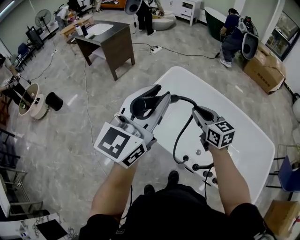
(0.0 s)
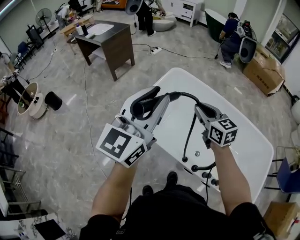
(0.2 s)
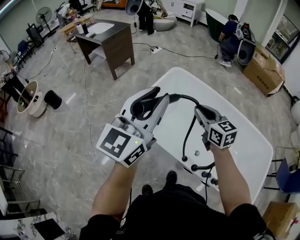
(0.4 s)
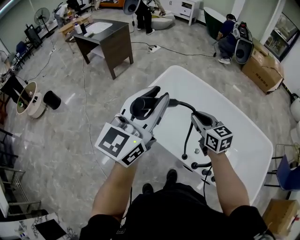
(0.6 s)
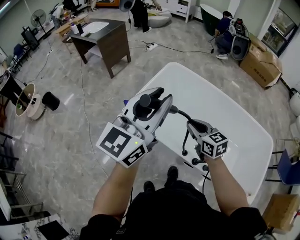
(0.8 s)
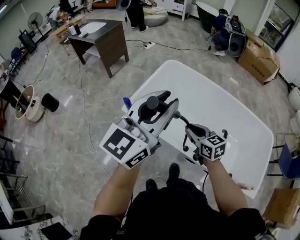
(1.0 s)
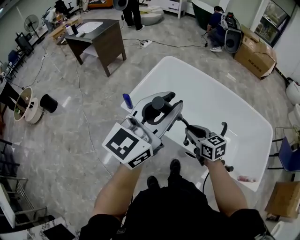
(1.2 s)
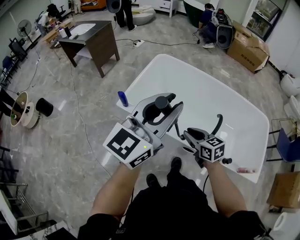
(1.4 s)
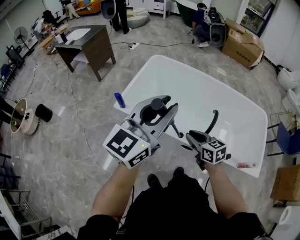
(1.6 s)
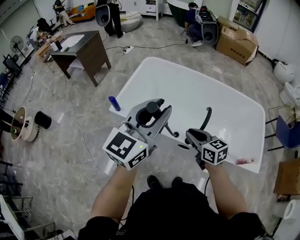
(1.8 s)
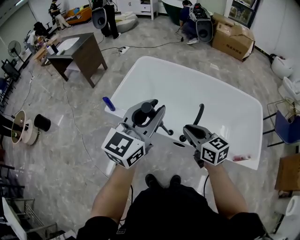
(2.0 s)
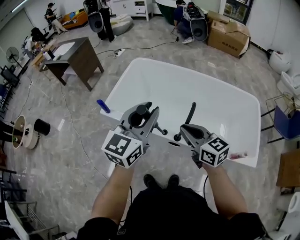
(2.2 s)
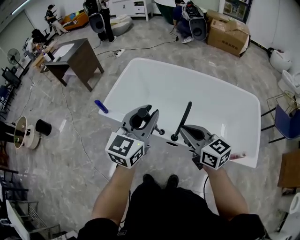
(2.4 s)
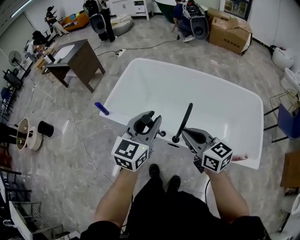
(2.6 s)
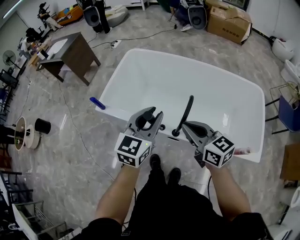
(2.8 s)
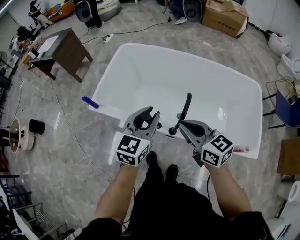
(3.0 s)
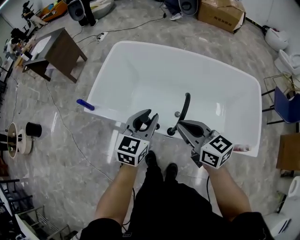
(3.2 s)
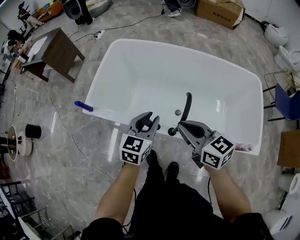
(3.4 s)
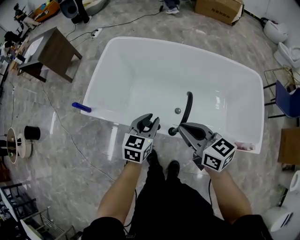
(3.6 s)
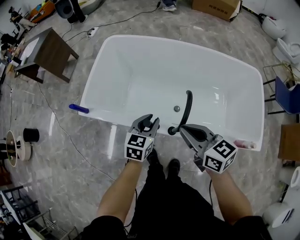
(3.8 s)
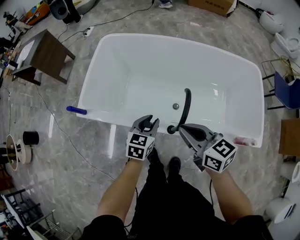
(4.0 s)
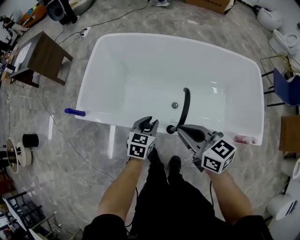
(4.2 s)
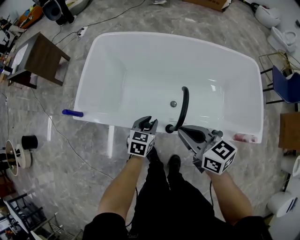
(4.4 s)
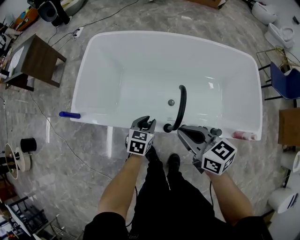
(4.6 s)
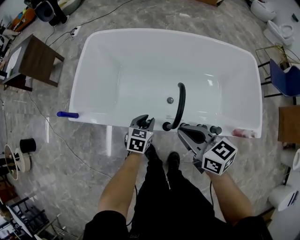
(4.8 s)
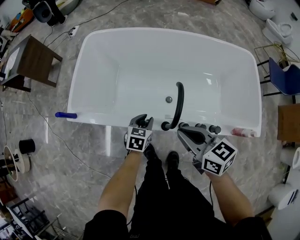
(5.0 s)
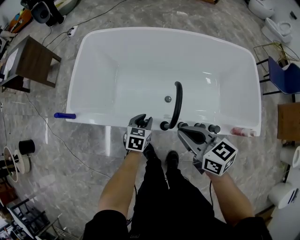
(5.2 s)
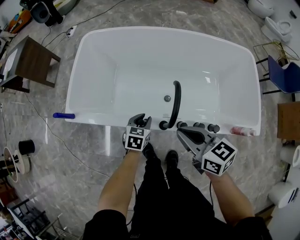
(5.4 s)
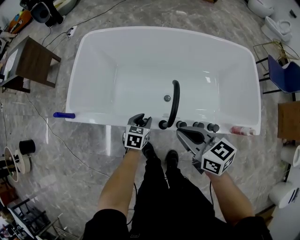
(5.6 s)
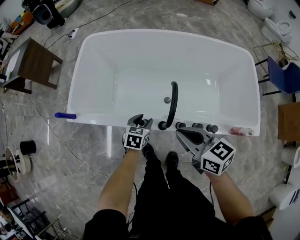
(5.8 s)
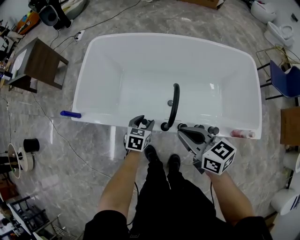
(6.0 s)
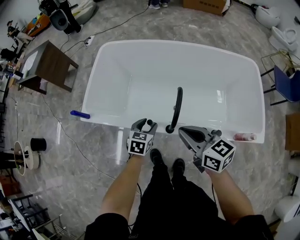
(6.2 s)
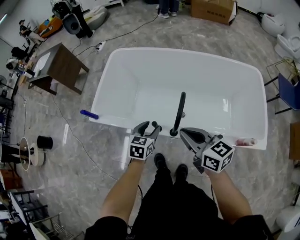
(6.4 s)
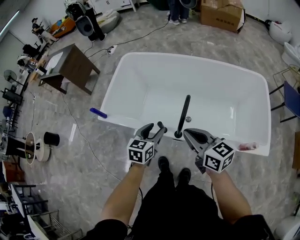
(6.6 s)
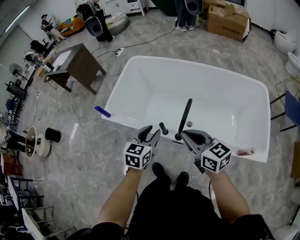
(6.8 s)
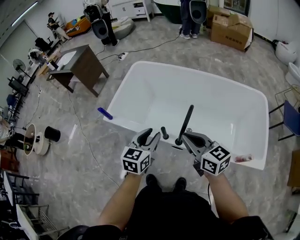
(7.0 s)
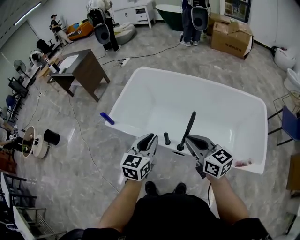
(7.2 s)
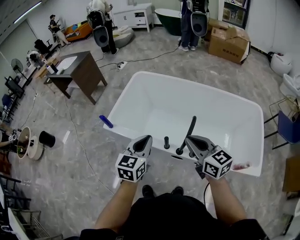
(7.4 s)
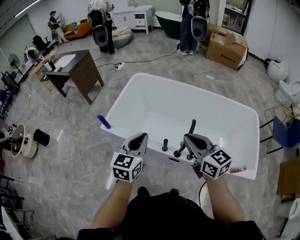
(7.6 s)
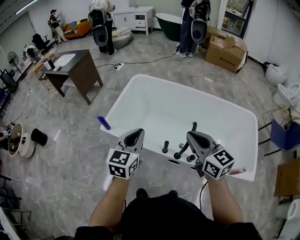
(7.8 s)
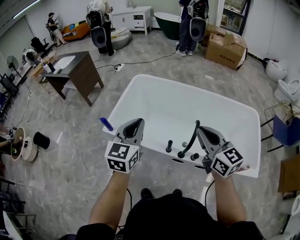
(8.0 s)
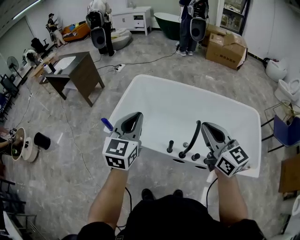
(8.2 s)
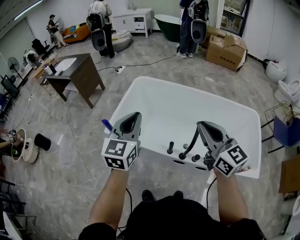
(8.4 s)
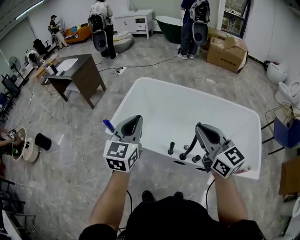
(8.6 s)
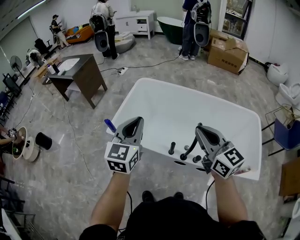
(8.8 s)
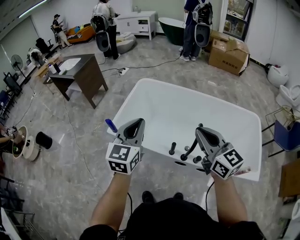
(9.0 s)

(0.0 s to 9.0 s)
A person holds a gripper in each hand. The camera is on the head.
0.0 s - 1.6 s: The left gripper goes about 15 cm backward and to the right; the right gripper travels backward and downward by roughly 25 cm.
1.6 s - 3.0 s: The left gripper goes roughly 25 cm downward and to the right, and rotates roughly 20 degrees. The right gripper goes some 10 cm to the right and upward.
3.0 s - 4.4 s: The right gripper heads downward, covering approximately 5 cm, while the left gripper goes approximately 25 cm downward, and swivels some 30 degrees.
4.4 s - 6.0 s: The left gripper opens up.
6.0 s - 7.6 s: The right gripper is displaced upward by approximately 15 cm, and changes its angle by about 20 degrees. The left gripper heads upward, covering roughly 30 cm, angles its fingers upward, by roughly 30 degrees, and closes up.
7.6 s - 9.0 s: The right gripper heads upward, covering roughly 5 cm, while the left gripper is displaced upward and to the left by approximately 10 cm.

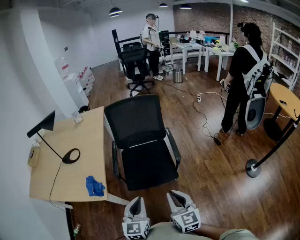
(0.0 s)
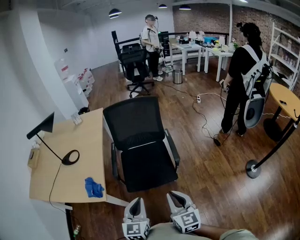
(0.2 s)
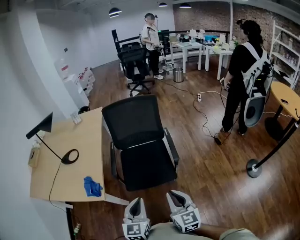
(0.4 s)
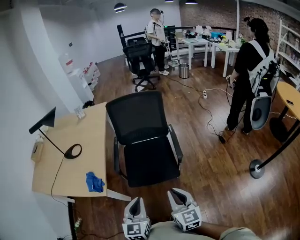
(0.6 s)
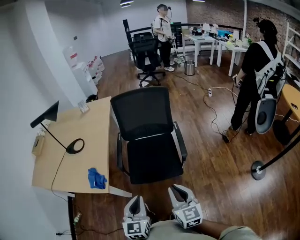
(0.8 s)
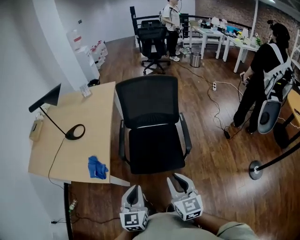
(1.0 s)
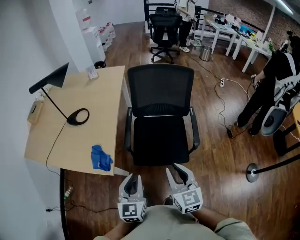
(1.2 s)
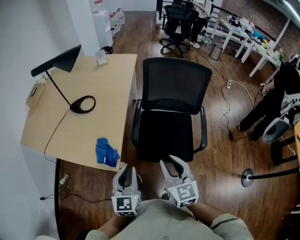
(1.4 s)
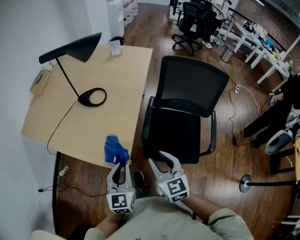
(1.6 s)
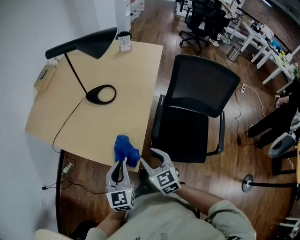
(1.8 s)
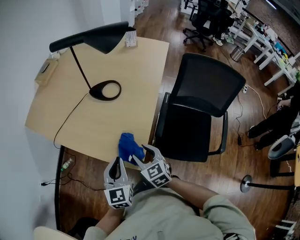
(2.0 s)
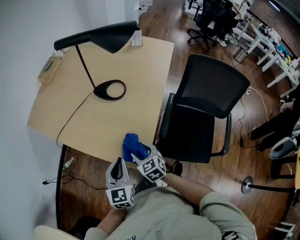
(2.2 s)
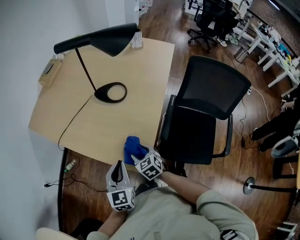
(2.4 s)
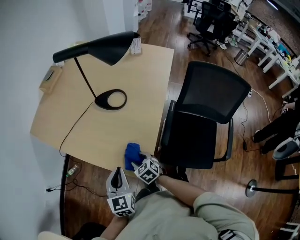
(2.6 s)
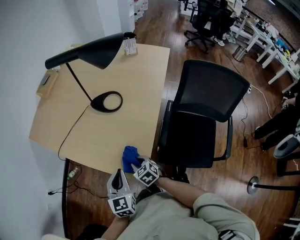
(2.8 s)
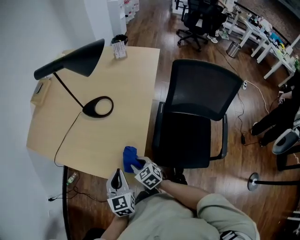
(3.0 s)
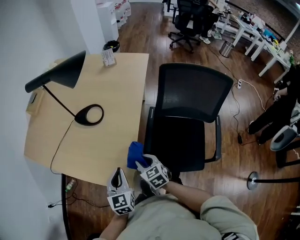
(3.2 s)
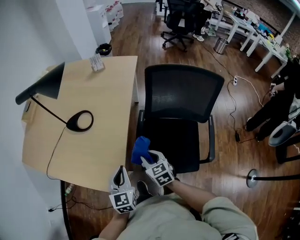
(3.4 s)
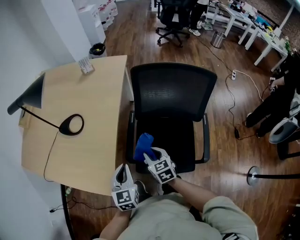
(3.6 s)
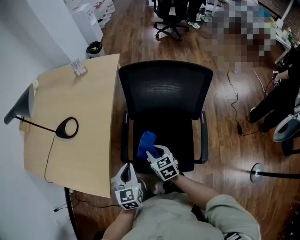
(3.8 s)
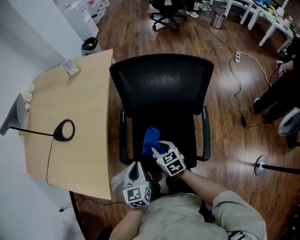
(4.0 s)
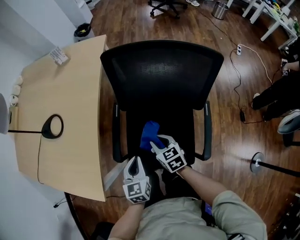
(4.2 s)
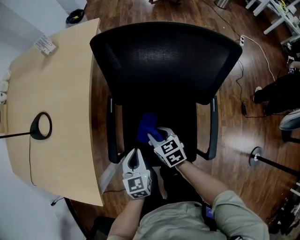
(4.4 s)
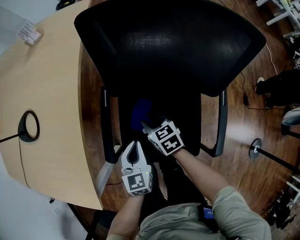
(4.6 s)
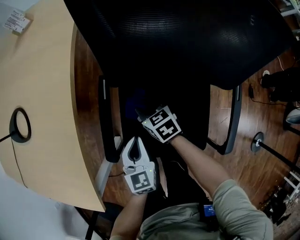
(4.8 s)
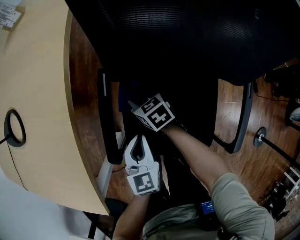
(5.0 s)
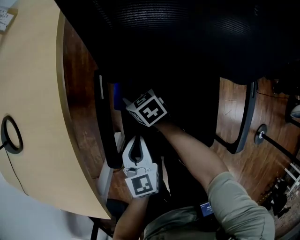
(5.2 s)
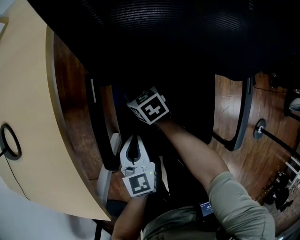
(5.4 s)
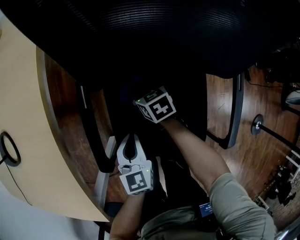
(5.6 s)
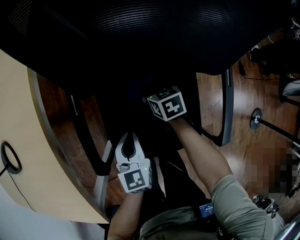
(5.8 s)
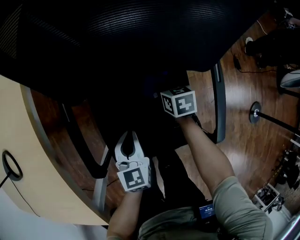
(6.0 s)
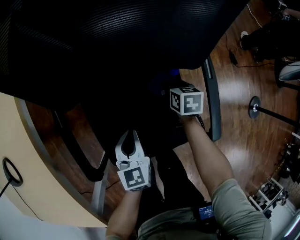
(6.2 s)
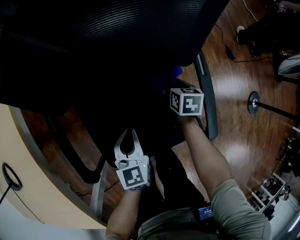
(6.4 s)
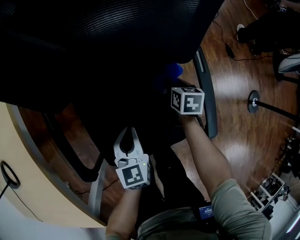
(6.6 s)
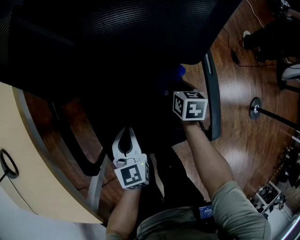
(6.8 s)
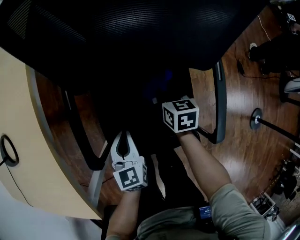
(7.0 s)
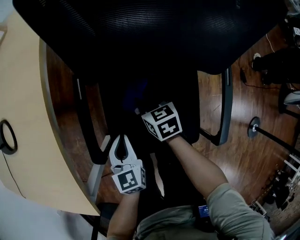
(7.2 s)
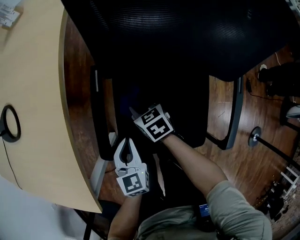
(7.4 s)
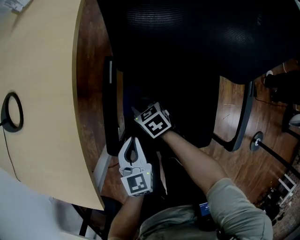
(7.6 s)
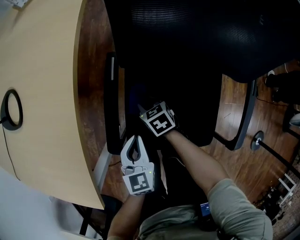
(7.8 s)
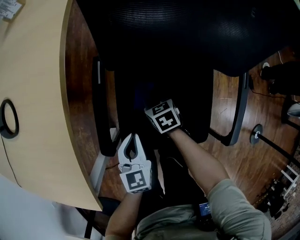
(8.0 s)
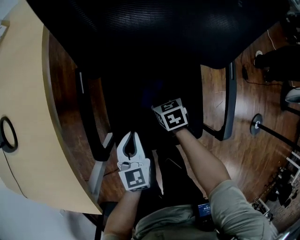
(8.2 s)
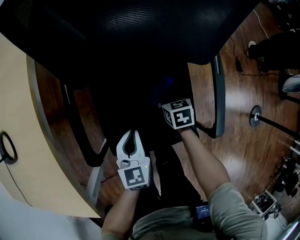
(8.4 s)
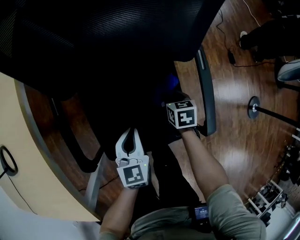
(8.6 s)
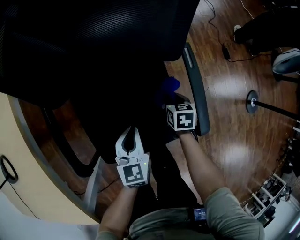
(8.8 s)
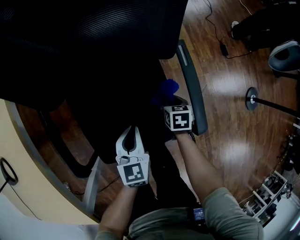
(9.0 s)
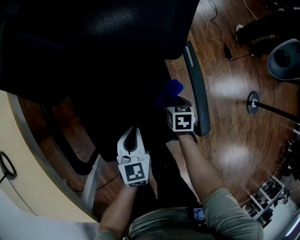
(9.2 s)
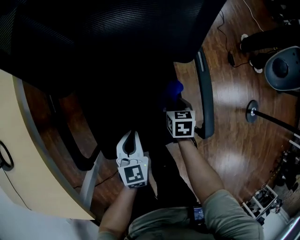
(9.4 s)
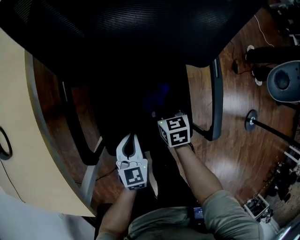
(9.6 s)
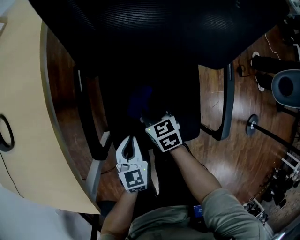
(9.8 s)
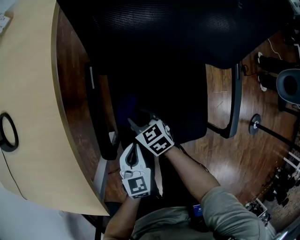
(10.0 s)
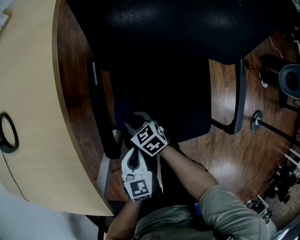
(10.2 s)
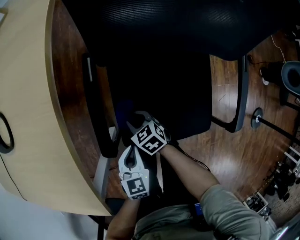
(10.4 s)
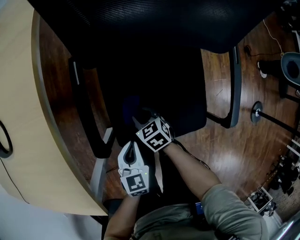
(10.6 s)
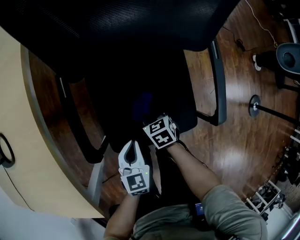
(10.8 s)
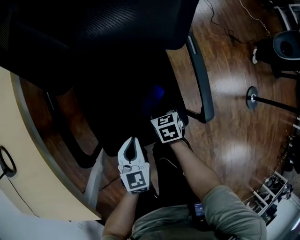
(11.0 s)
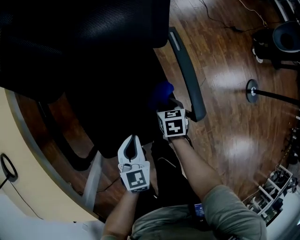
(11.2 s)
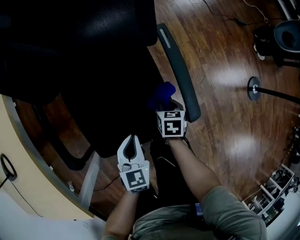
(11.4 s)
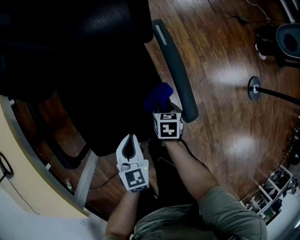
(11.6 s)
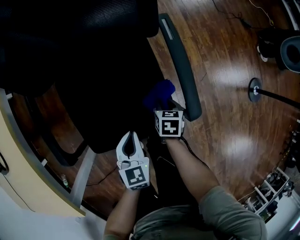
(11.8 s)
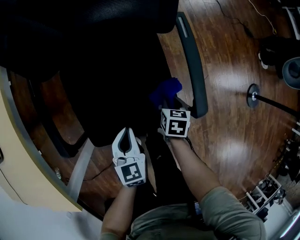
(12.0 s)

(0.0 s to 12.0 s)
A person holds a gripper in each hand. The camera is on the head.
0.0 s - 1.6 s: The left gripper changes place by roughly 30 cm, and swivels approximately 30 degrees, while the right gripper shifts by roughly 35 cm, changes its angle by approximately 30 degrees, and opens its fingers.
1.6 s - 3.0 s: The left gripper moves forward, downward and to the left, approximately 10 cm; the right gripper goes about 25 cm downward, forward and to the left, rotates about 30 degrees, and opens, then closes again.
3.0 s - 4.4 s: The right gripper goes roughly 40 cm to the right, and changes its angle by roughly 20 degrees. Meanwhile the left gripper shifts about 40 cm to the right and downward.
4.4 s - 6.0 s: The right gripper moves approximately 25 cm, and rotates roughly 30 degrees. The left gripper shifts about 10 cm downward.
6.0 s - 7.6 s: The right gripper goes upward and returns, approximately 5 cm each way, and rotates about 40 degrees. Meanwhile the left gripper shifts by some 15 cm.
7.6 s - 9.0 s: The right gripper shifts by approximately 40 cm, and rotates approximately 60 degrees. The left gripper moves some 25 cm, and swivels roughly 30 degrees.
9.0 s - 10.4 s: The left gripper moves some 25 cm. Meanwhile the right gripper travels upward and back again, approximately 5 cm each way, and rotates roughly 50 degrees.
10.4 s - 12.0 s: The left gripper shifts by about 20 cm. Meanwhile the right gripper moves roughly 40 cm, and rotates about 60 degrees.

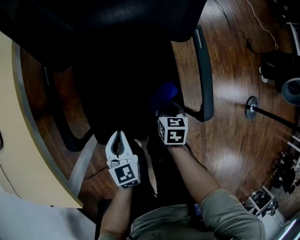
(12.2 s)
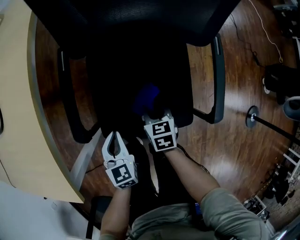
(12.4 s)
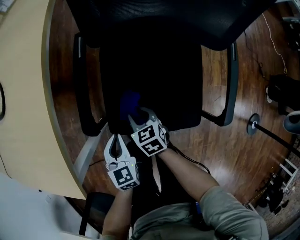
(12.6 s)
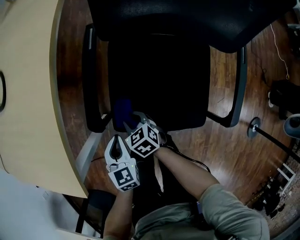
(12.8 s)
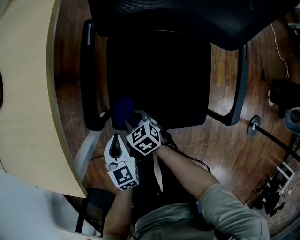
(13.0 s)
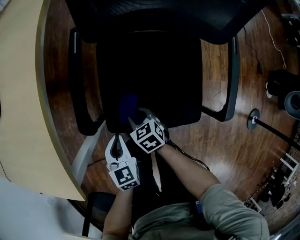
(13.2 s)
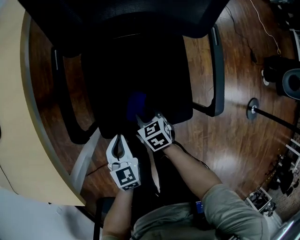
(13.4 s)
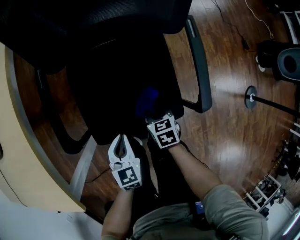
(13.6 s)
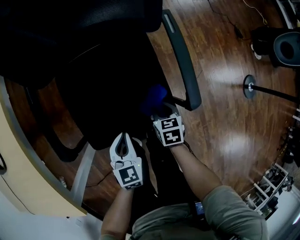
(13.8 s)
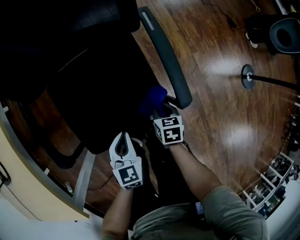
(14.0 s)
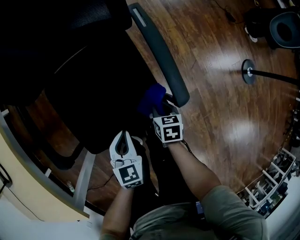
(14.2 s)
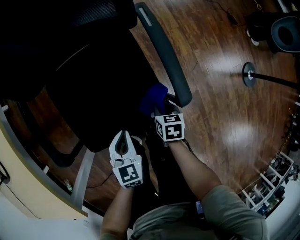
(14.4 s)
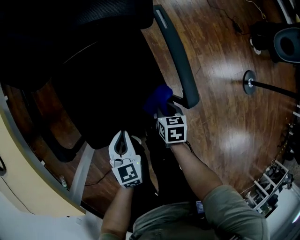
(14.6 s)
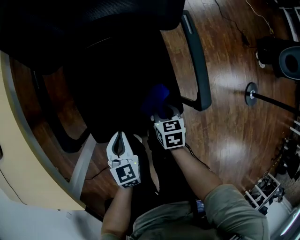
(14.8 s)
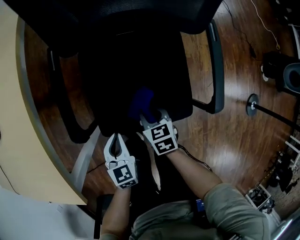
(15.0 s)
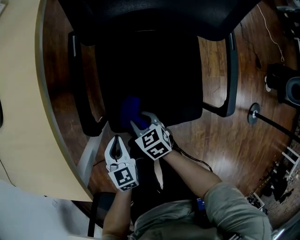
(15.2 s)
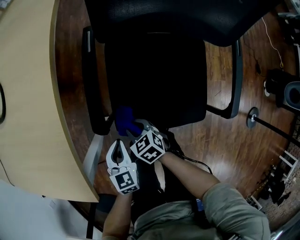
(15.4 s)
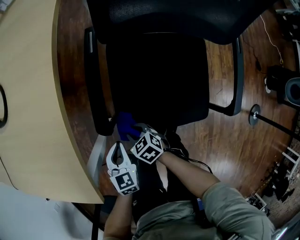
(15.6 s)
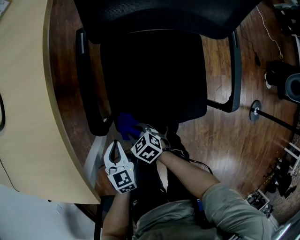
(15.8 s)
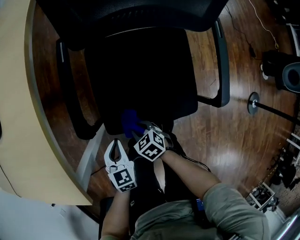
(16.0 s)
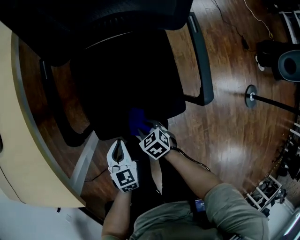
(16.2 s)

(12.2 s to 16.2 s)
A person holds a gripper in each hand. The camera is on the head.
13.6 s - 14.8 s: The right gripper moves some 15 cm to the right and comes back. Meanwhile the left gripper reaches approximately 10 cm to the right, then returns.
14.8 s - 16.2 s: The right gripper rotates about 30 degrees.
